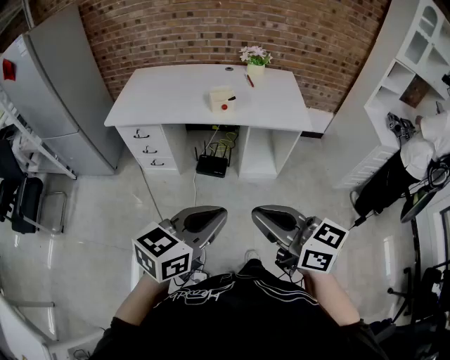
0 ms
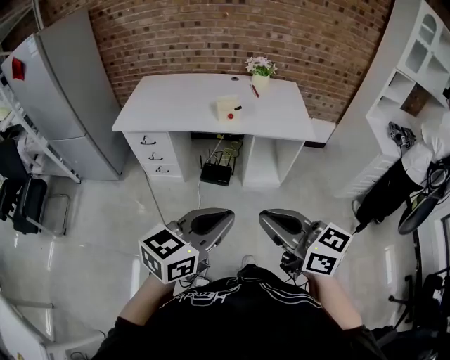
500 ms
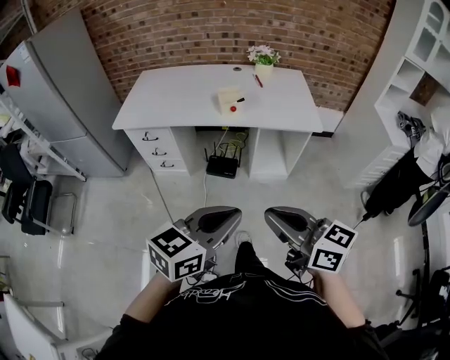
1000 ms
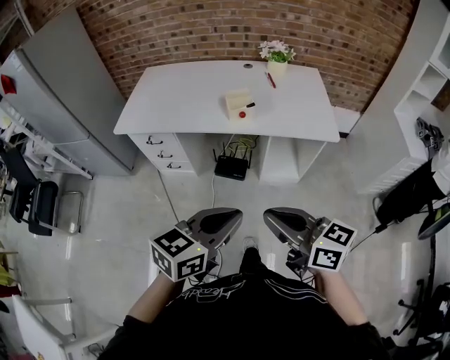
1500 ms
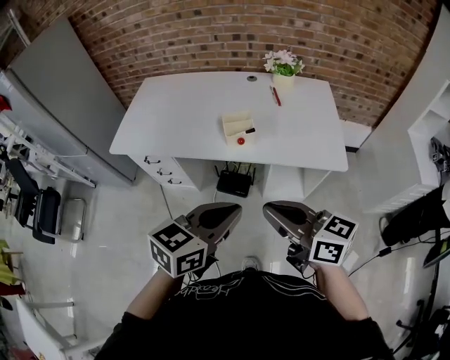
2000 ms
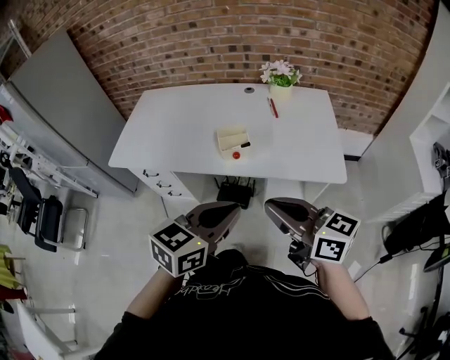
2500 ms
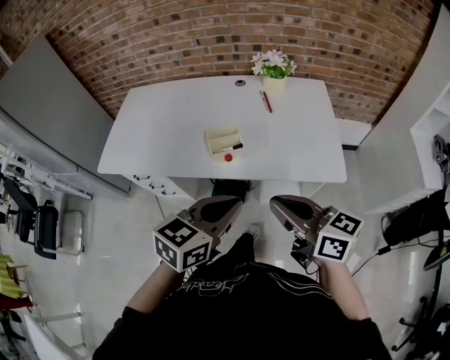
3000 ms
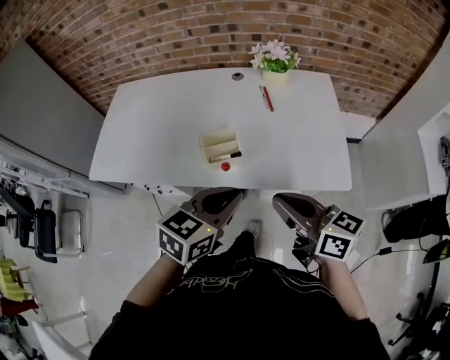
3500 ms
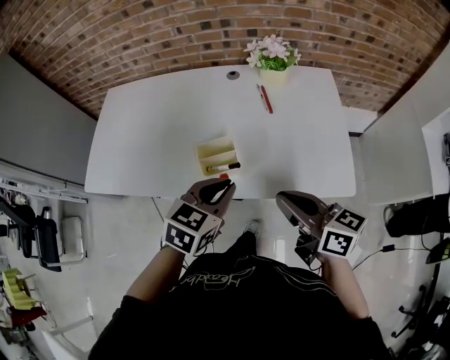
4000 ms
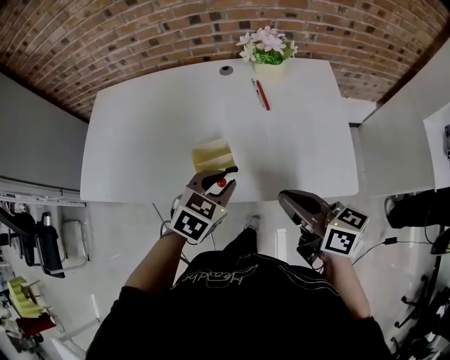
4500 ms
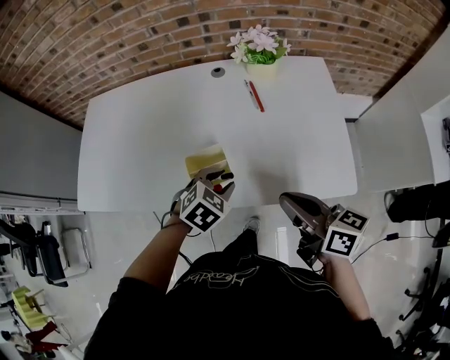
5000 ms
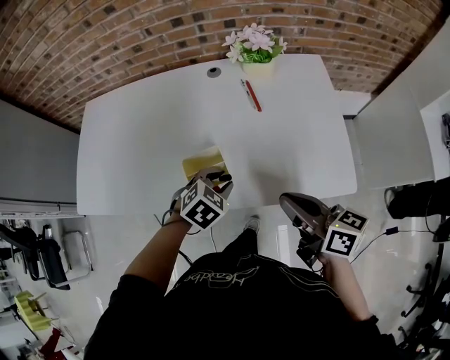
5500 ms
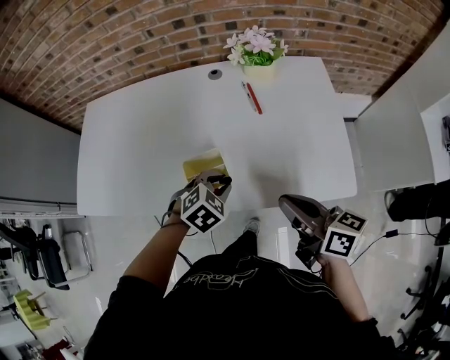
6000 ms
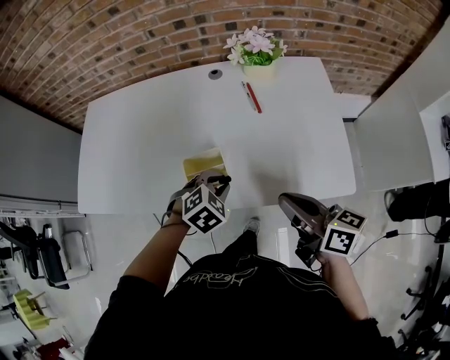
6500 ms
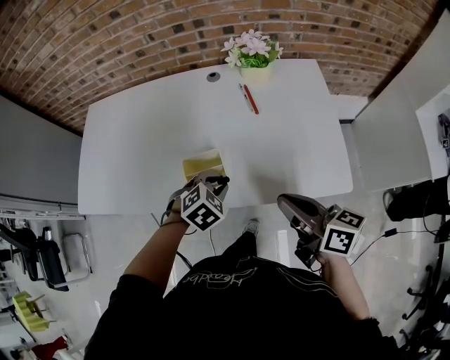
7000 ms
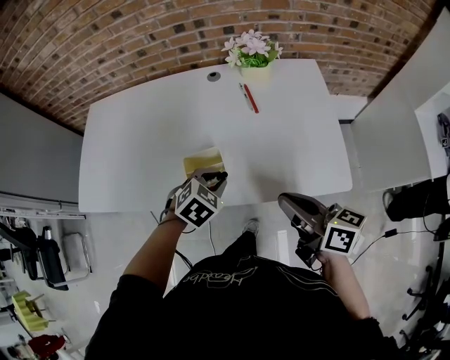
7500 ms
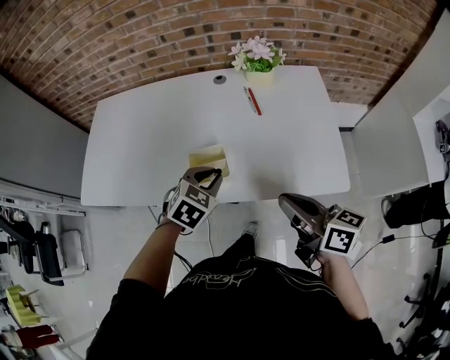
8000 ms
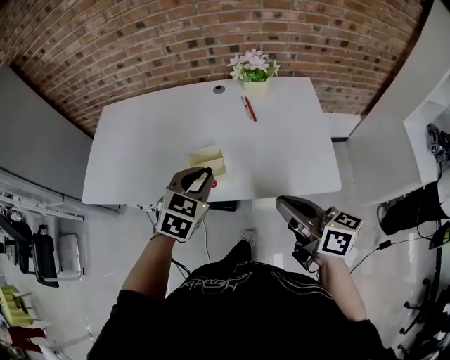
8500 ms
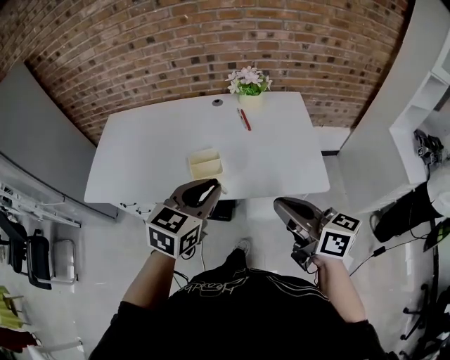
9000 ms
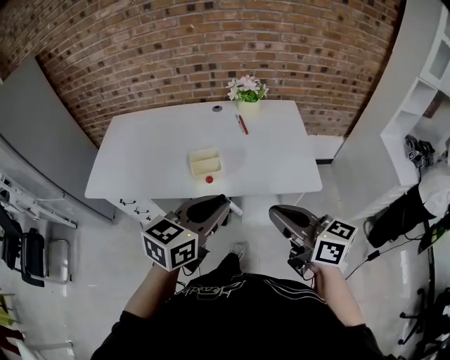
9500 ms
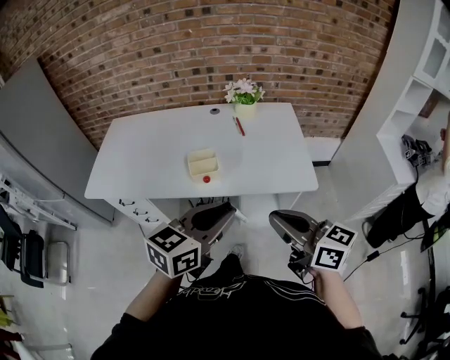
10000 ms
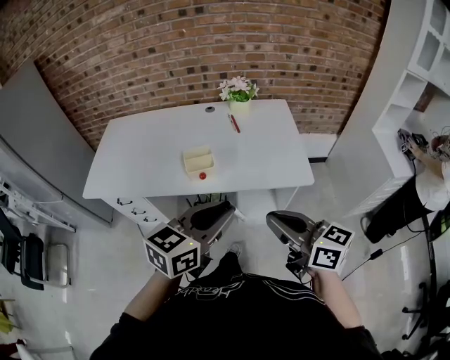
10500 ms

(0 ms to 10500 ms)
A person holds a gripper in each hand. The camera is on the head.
0 ms - 2000 ms: Both grippers move forward, about 25 cm.
2000 ms - 4000 ms: The two grippers go roughly 25 cm forward. The left gripper turns by some 20 degrees.
4000 ms - 6500 ms: The right gripper changes place by about 5 cm, while the left gripper heads downward and forward, covering roughly 15 cm, and rotates some 40 degrees.
6500 ms - 8500 ms: The right gripper is displaced backward and upward by roughly 10 cm. The left gripper is displaced upward by about 15 cm, and swivels about 30 degrees.
8500 ms - 10500 ms: The left gripper moves backward and upward, about 25 cm, and changes its angle by roughly 40 degrees; the right gripper moves backward, about 15 cm.

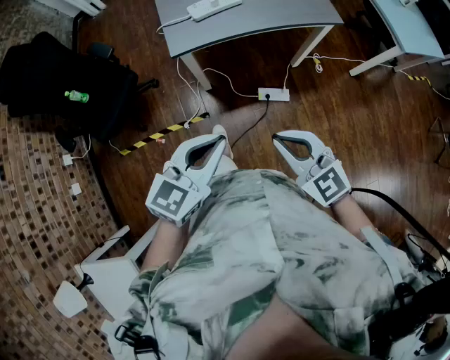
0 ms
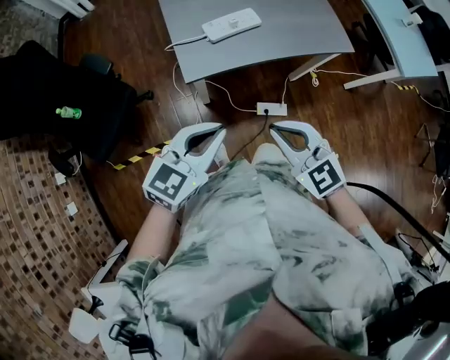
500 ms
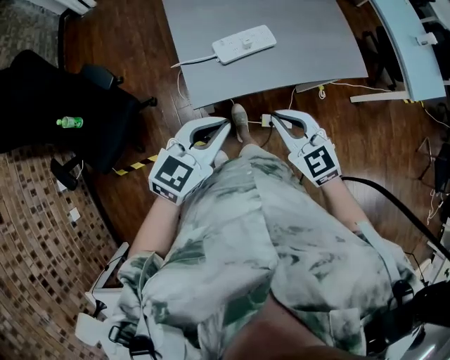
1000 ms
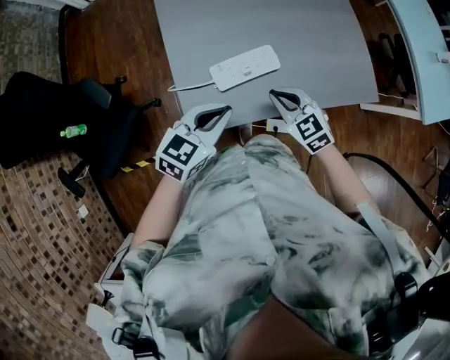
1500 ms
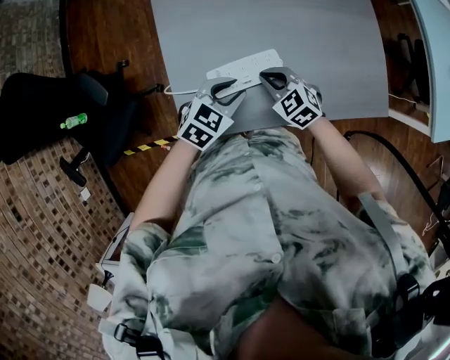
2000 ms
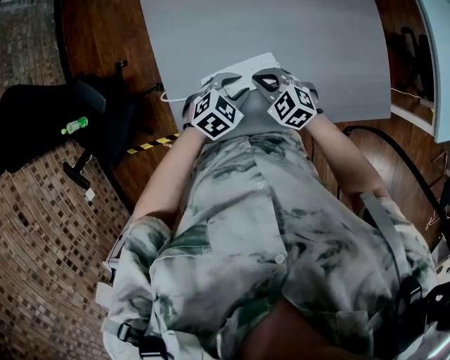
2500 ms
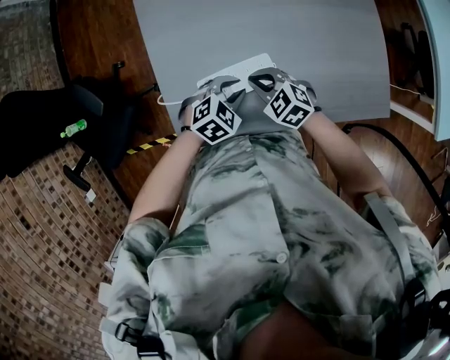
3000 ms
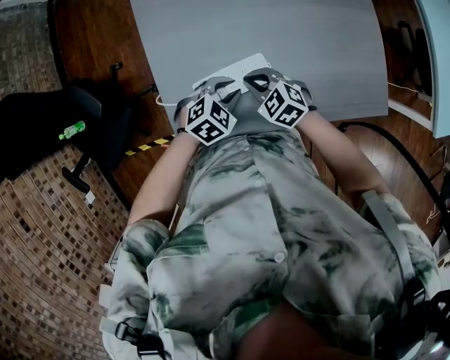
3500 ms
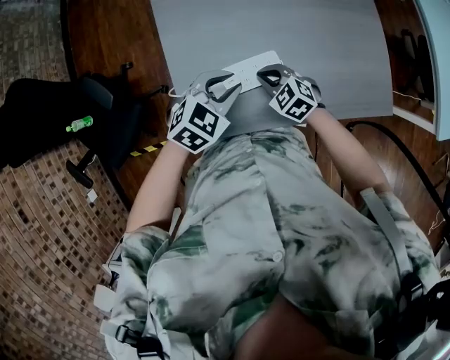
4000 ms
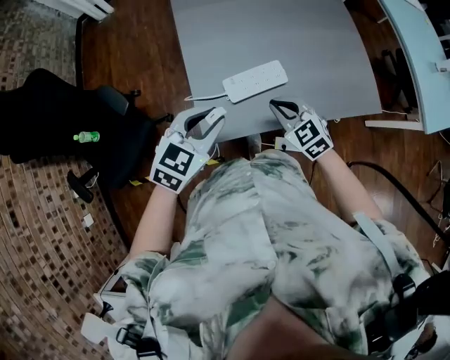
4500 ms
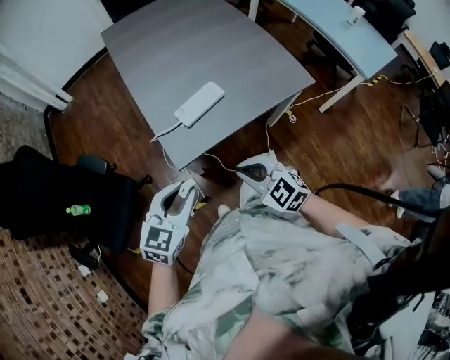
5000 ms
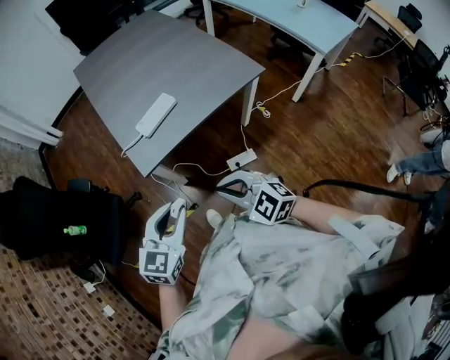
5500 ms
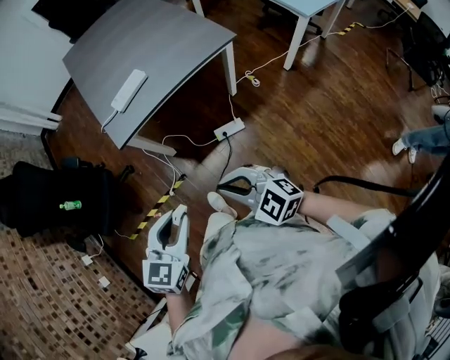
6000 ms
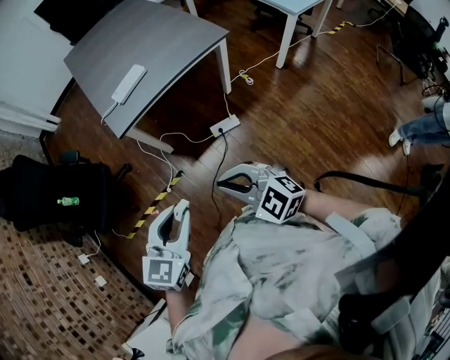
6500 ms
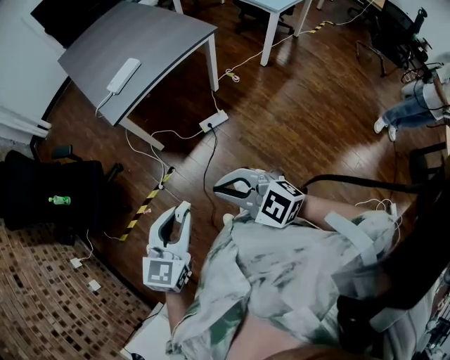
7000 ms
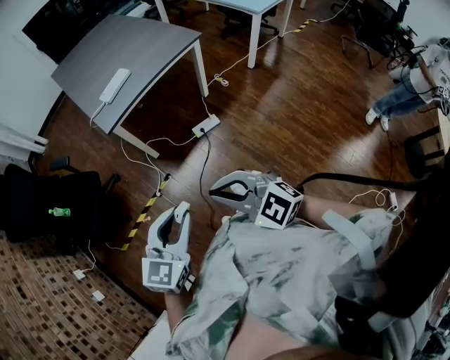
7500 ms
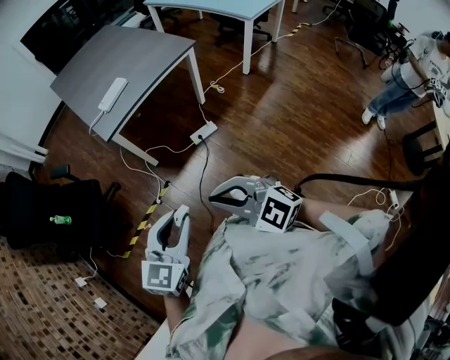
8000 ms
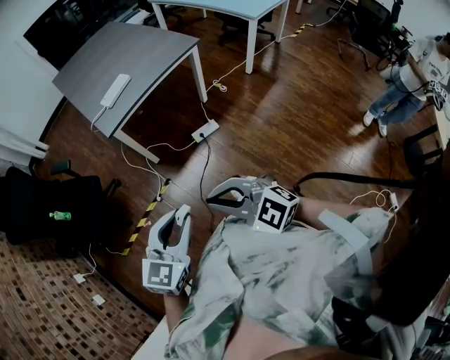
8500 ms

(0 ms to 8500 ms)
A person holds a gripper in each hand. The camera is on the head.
0 ms - 2000 ms: The pair of grippers is taken forward, approximately 50 cm. The grippers both shift downward by roughly 20 cm. The right gripper changes its angle by some 20 degrees, while the left gripper turns by about 30 degrees, and opens up.
4000 ms - 6500 ms: The two grippers travel together, backward, approximately 60 cm. The left gripper turns by some 20 degrees, while the right gripper shifts approximately 25 cm upward, and turns by some 30 degrees.
6500 ms - 8500 ms: The left gripper travels backward by approximately 10 cm; the right gripper travels backward and to the left by roughly 15 cm.

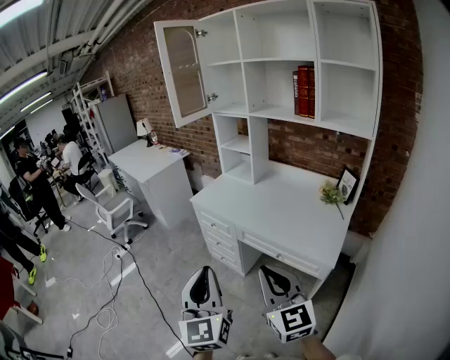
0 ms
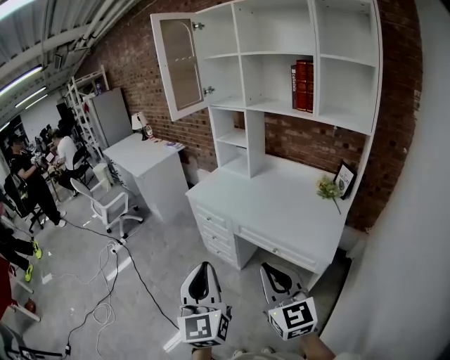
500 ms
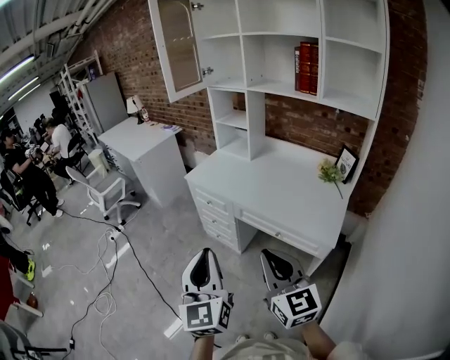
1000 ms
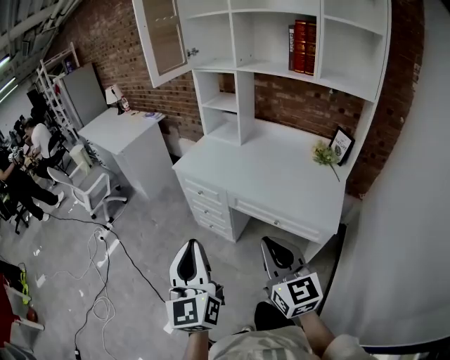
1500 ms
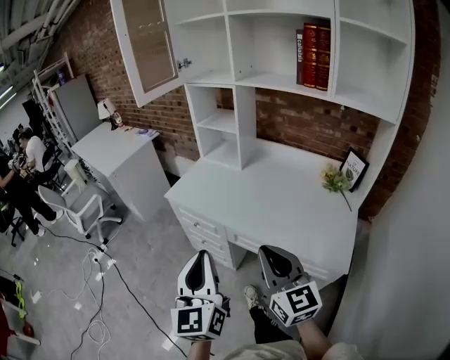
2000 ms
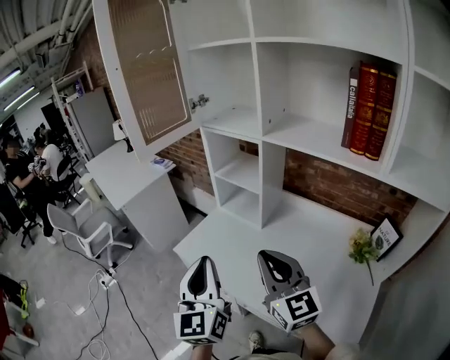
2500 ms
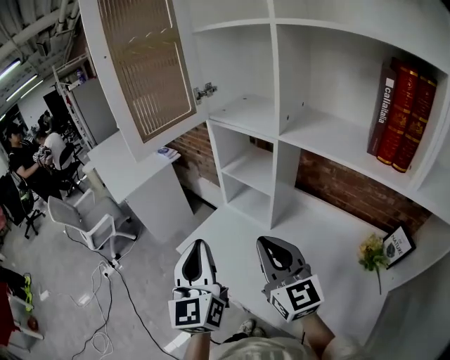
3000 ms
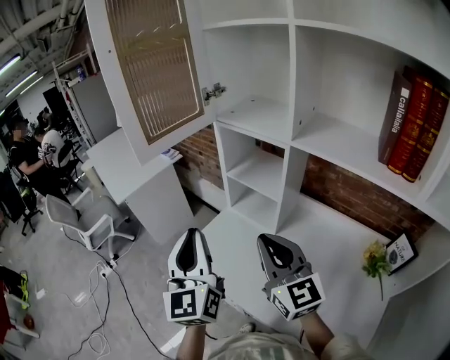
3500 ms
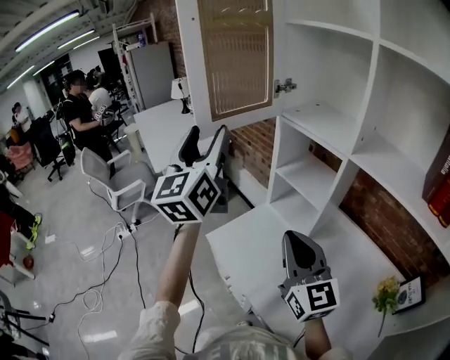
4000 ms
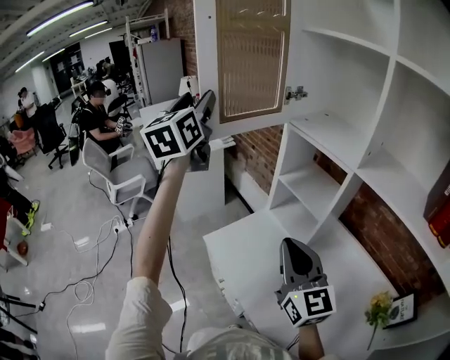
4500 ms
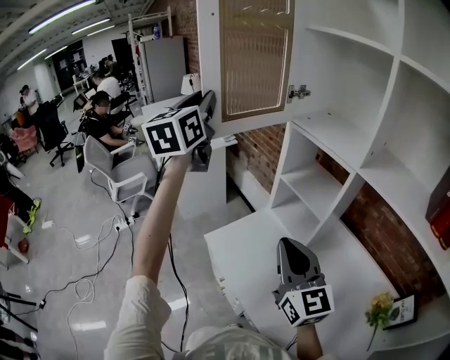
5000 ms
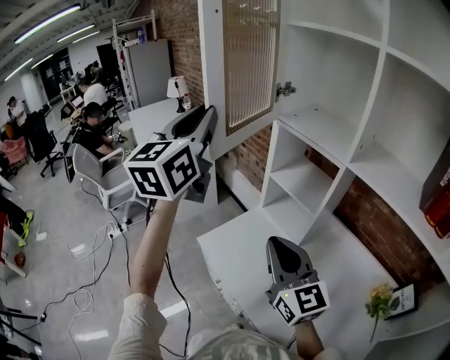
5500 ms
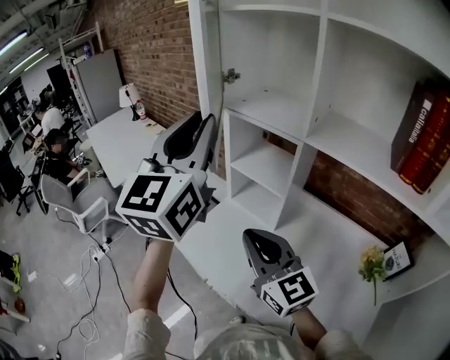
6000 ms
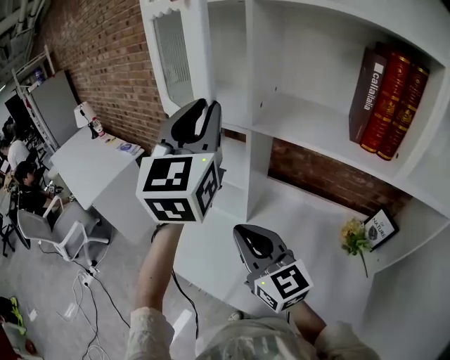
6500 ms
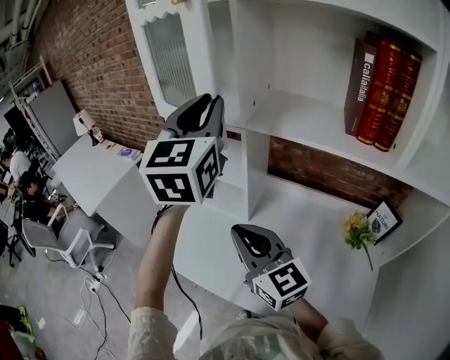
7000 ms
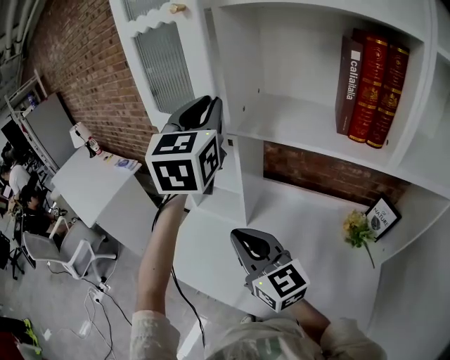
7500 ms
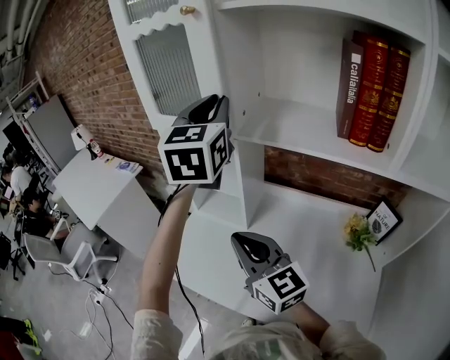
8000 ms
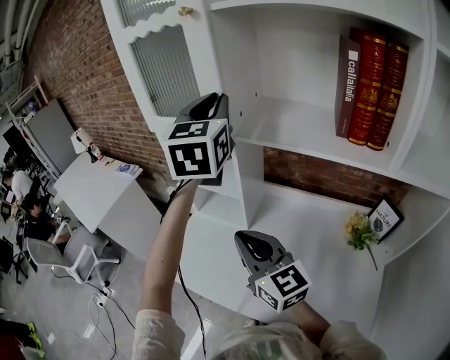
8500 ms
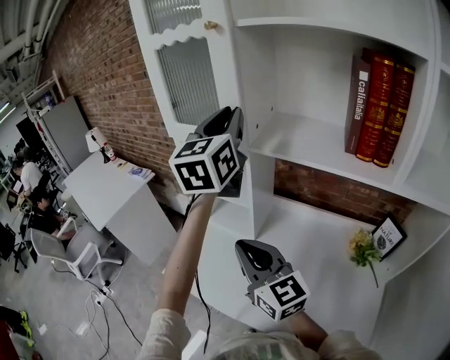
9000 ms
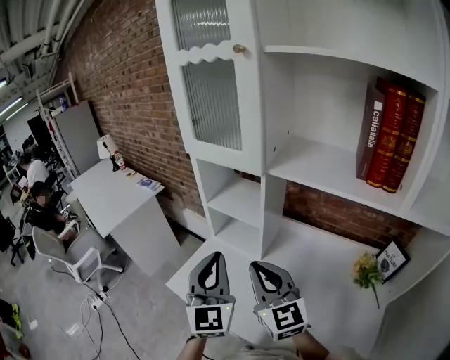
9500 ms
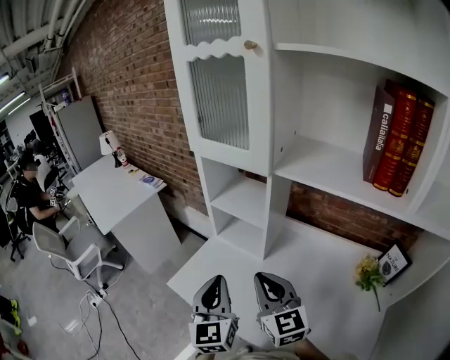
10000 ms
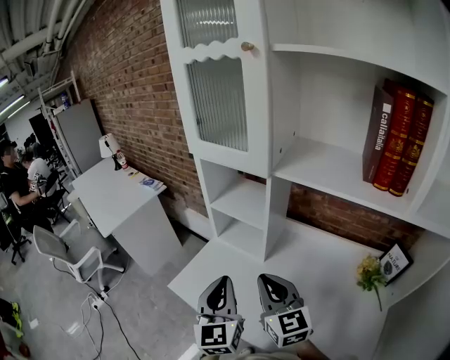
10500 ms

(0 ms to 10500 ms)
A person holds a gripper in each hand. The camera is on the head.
0 ms - 2000 ms: The grippers both shift forward by approximately 25 cm.
2000 ms - 4000 ms: The two grippers travel together, forward, about 50 cm. The left gripper travels upward by some 25 cm, rotates some 20 degrees, and opens up.
4000 ms - 6500 ms: The left gripper heads to the right, covering some 25 cm, changes its angle by roughly 30 degrees, and closes up.
6500 ms - 8500 ms: The left gripper is displaced to the right and forward by approximately 10 cm.
8500 ms - 10500 ms: The left gripper moves downward, backward and to the left, roughly 35 cm, and changes its angle by some 20 degrees; the right gripper shifts some 5 cm downward.
